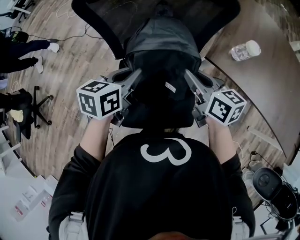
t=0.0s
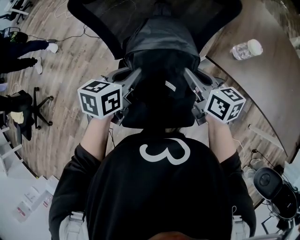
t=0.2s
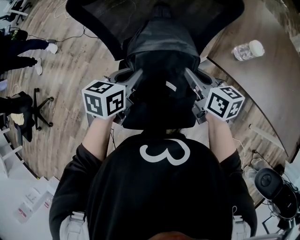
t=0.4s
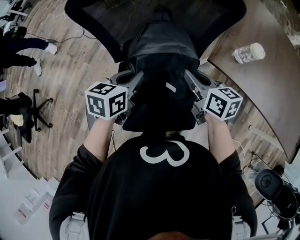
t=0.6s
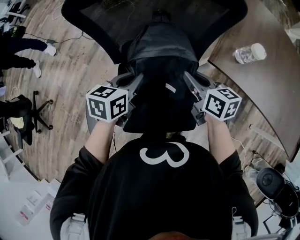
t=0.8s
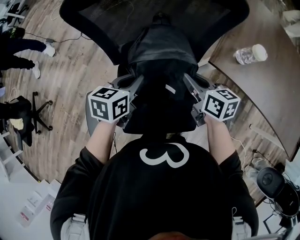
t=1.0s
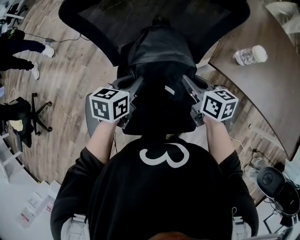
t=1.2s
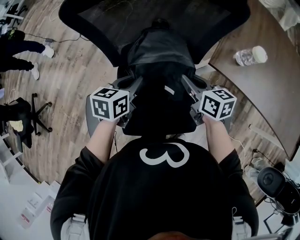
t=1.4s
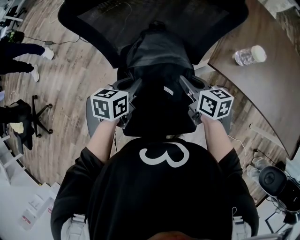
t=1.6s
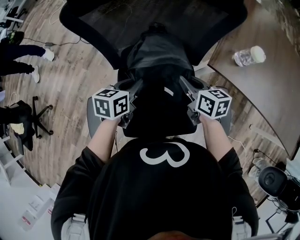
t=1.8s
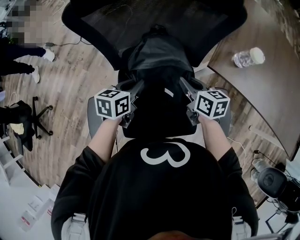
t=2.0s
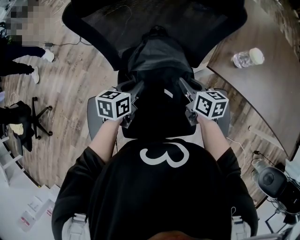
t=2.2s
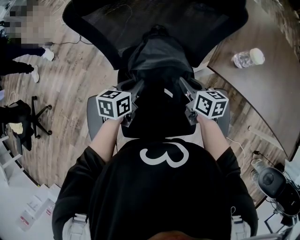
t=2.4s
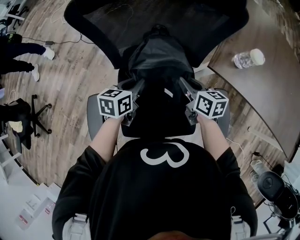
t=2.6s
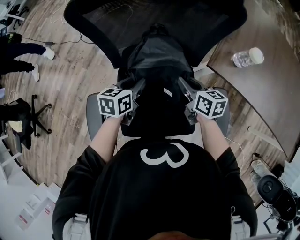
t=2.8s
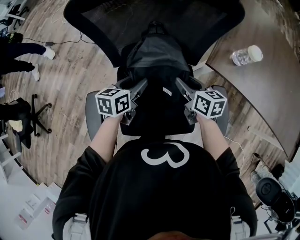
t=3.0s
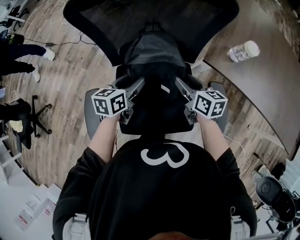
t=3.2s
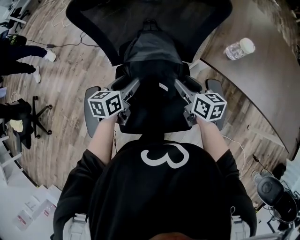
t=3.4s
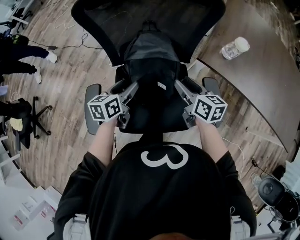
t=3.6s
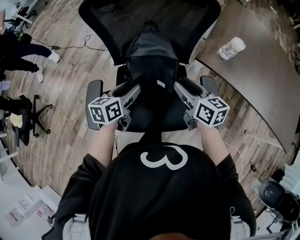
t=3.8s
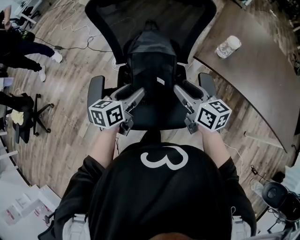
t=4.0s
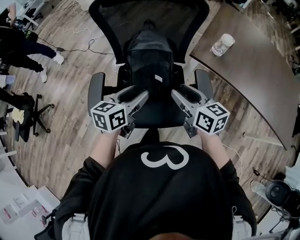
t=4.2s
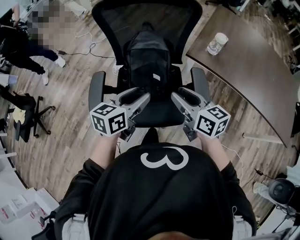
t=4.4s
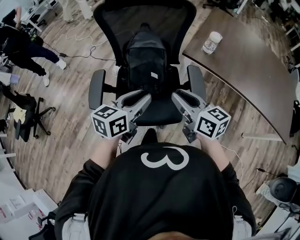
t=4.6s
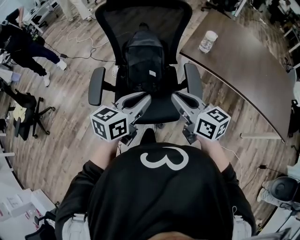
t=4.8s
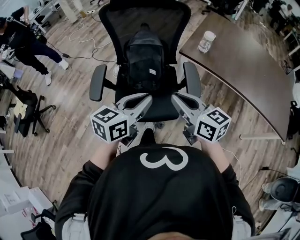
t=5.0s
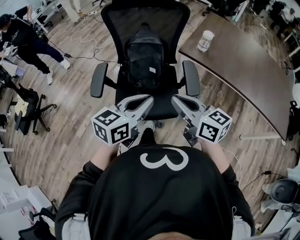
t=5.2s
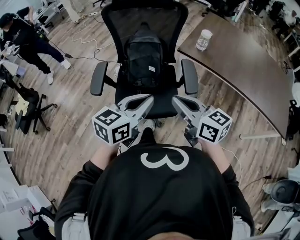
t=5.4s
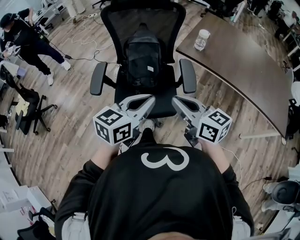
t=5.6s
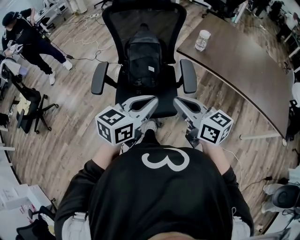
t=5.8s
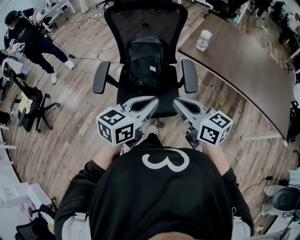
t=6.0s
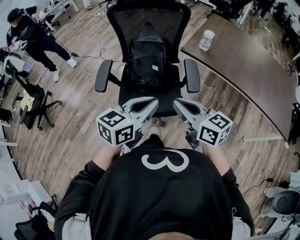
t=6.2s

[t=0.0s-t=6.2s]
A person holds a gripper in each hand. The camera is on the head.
t=0.0s to t=1.6s: Both grippers move downward, some 10 cm.
t=1.6s to t=3.2s: The right gripper opens up. Meanwhile the left gripper opens up.
t=3.2s to t=4.6s: The two grippers go some 30 cm backward and upward. The right gripper changes its angle by some 20 degrees, and closes its fingers, while the left gripper closes up.
t=4.6s to t=6.2s: The left gripper travels backward and to the right by about 15 cm, and closes up; the right gripper travels backward by roughly 15 cm, and closes.

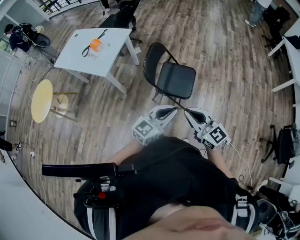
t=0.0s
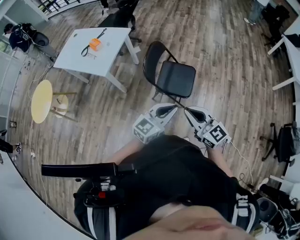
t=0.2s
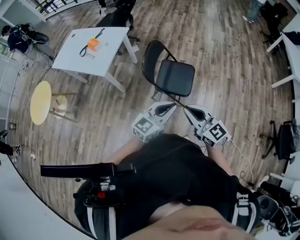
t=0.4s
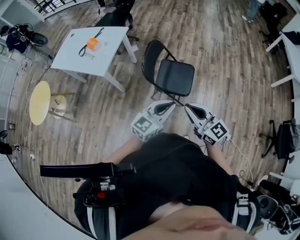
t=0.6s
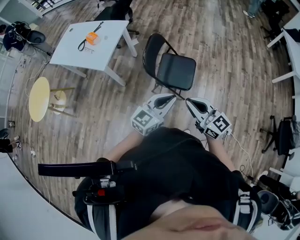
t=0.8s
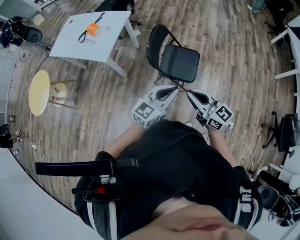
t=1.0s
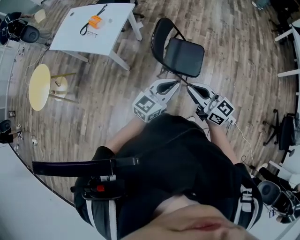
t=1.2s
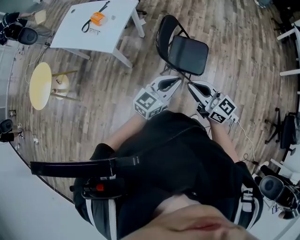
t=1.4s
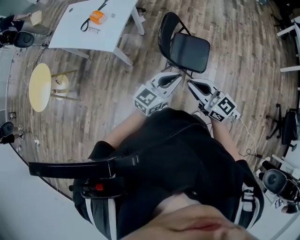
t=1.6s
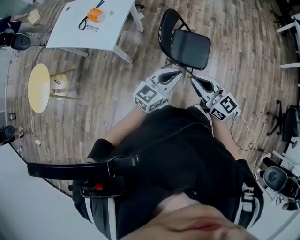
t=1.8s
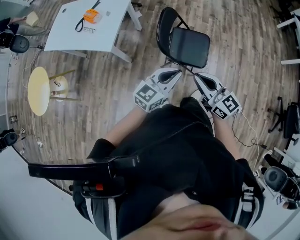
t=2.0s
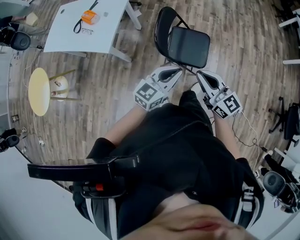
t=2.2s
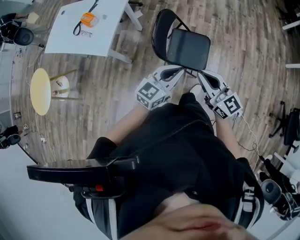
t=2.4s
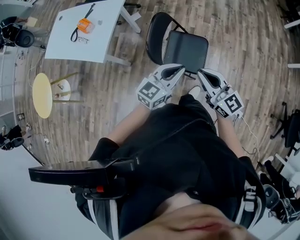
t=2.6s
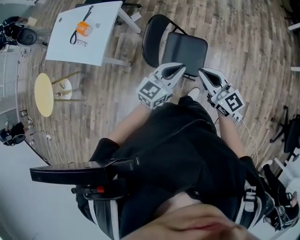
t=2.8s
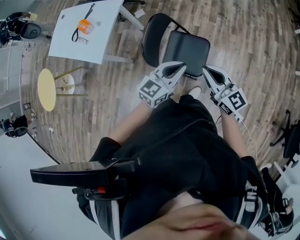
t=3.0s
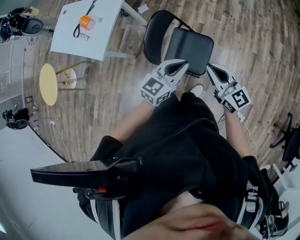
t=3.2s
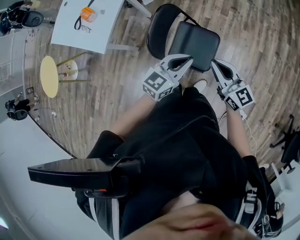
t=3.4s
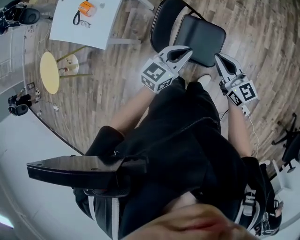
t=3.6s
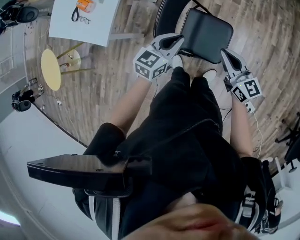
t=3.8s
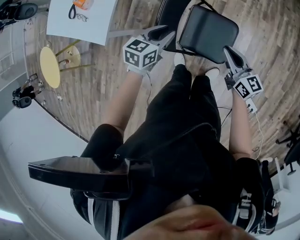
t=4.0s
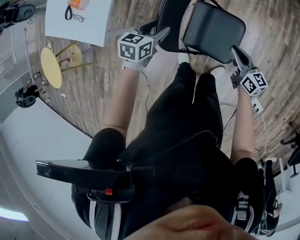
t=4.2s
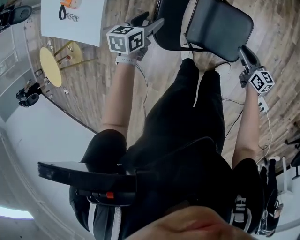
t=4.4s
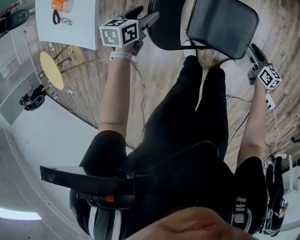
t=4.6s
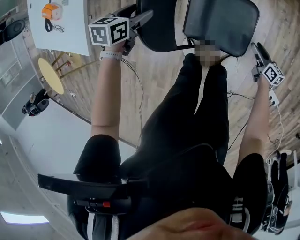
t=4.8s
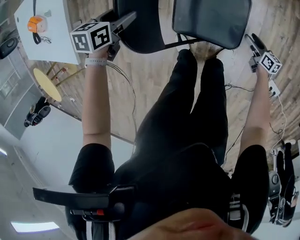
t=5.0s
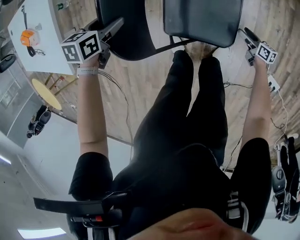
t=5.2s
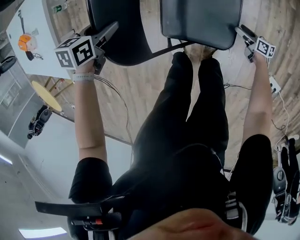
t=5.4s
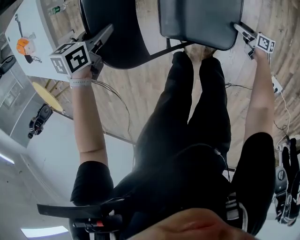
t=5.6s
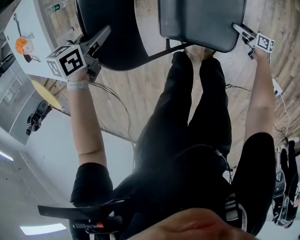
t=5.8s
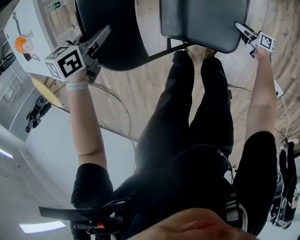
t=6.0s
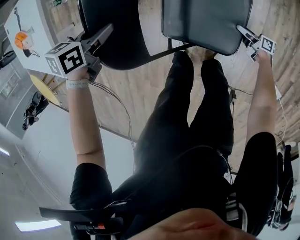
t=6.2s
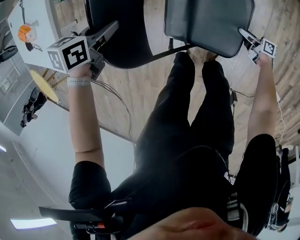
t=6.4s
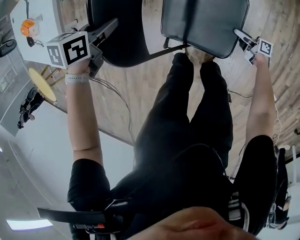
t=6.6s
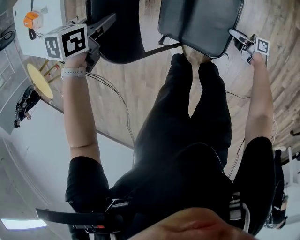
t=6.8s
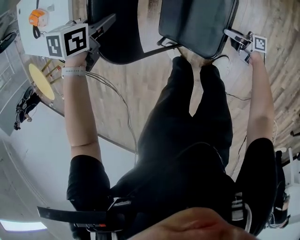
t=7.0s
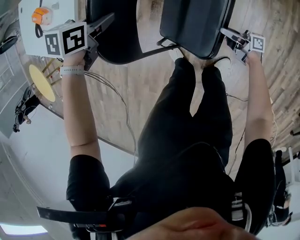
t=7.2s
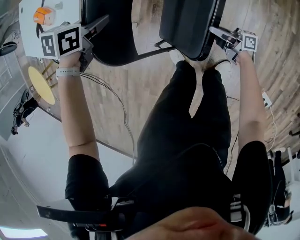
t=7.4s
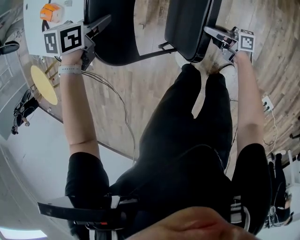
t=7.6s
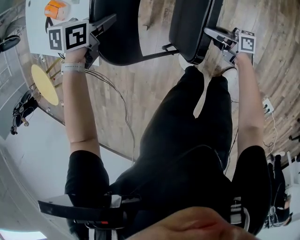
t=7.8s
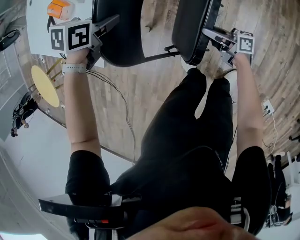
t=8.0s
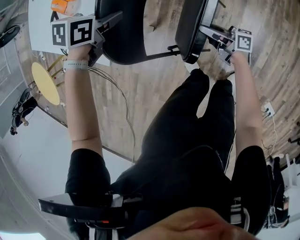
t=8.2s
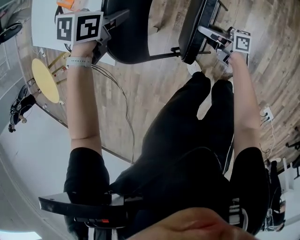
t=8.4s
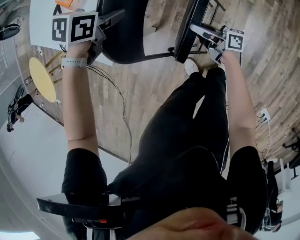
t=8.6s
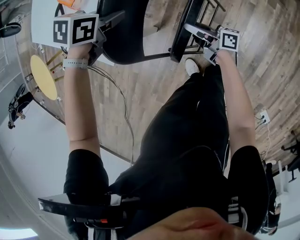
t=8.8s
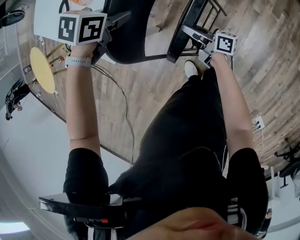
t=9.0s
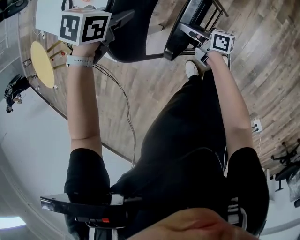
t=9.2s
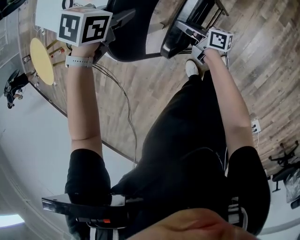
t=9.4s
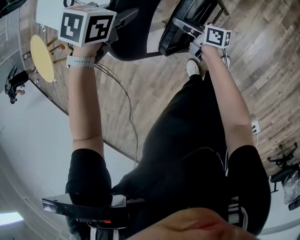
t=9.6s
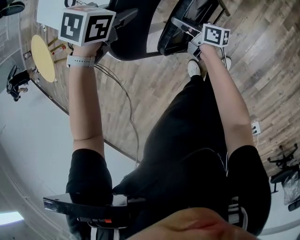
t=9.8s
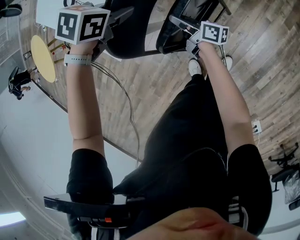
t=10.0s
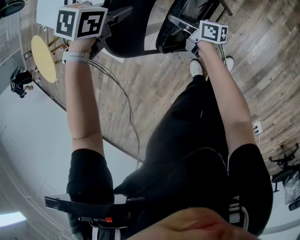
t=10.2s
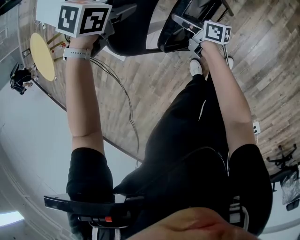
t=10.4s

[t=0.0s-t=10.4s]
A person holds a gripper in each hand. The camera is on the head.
t=0.0s to t=1.4s: Both grippers move to the left and forward, approximately 10 cm.
t=1.4s to t=3.0s: The grippers both shift forward and to the right by some 25 cm.
t=3.0s to t=4.4s: The right gripper goes approximately 40 cm downward, and turns by roughly 40 degrees; the left gripper goes roughly 40 cm downward, to the left and forward, tilts its fingers approximately 40 degrees downward, and opens up.
t=4.4s to t=6.0s: The left gripper shifts approximately 10 cm downward, and closes up; the right gripper travels downward by about 30 cm, rotates some 30 degrees, and opens its fingers.
t=6.0s to t=7.4s: The right gripper moves upward, approximately 30 cm, rotates about 30 degrees, and closes up. Meanwhile the left gripper is displaced upward by some 10 cm.
t=7.4s to t=9.0s: The left gripper ends up some 15 cm from where it was. The right gripper ends up about 30 cm from where it was.
t=9.0s to t=10.4s: The left gripper moves about 5 cm. Meanwhile the right gripper shifts by some 10 cm.

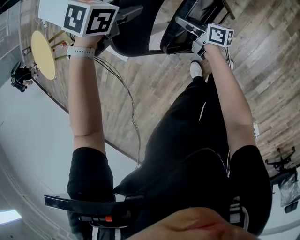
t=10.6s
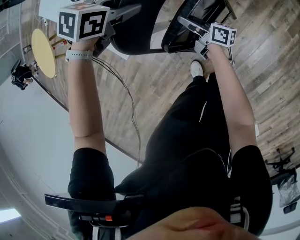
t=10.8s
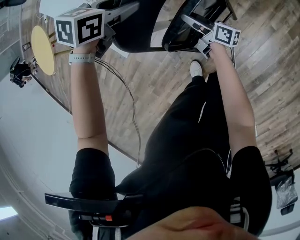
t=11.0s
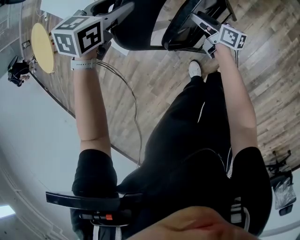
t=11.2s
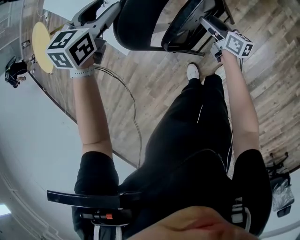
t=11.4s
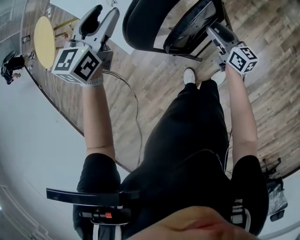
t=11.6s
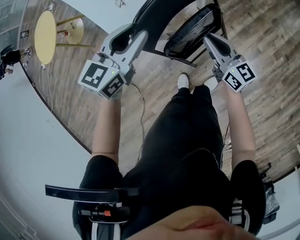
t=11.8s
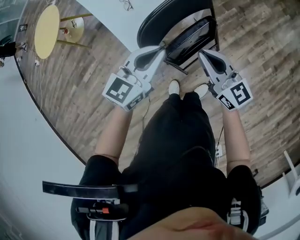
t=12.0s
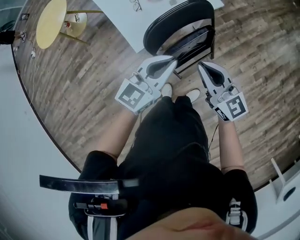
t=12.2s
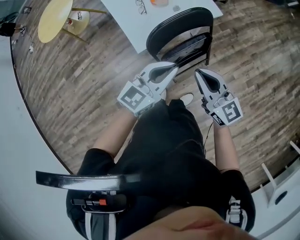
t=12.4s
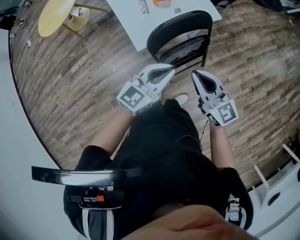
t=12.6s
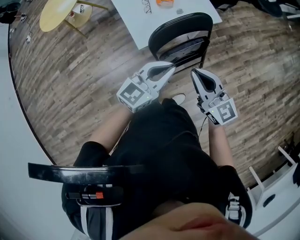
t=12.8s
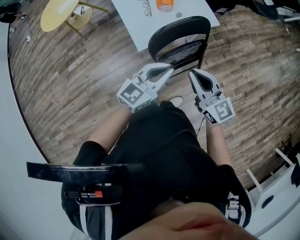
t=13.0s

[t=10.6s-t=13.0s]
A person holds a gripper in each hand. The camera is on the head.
t=10.6s to t=11.8s: Both grippers travel together upward, some 20 cm. The left gripper points its fingers about 40 degrees further upward; the right gripper twists about 50 degrees counterclockwise, seen from behind, and opens and closes again.
t=11.8s to t=13.0s: The left gripper moves backward and upward, some 20 cm, and closes. Meanwhile the right gripper is displaced upward and backward by roughly 25 cm, and swivels about 30 degrees.

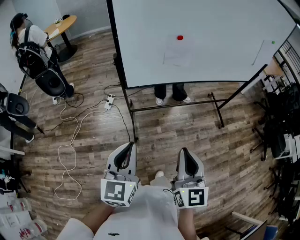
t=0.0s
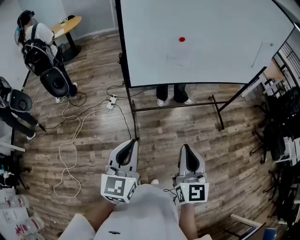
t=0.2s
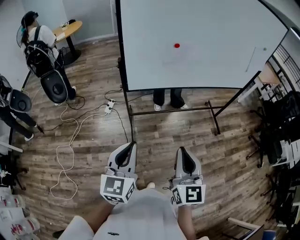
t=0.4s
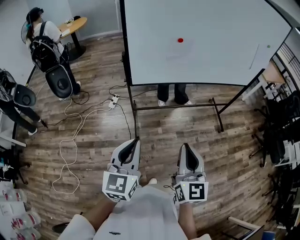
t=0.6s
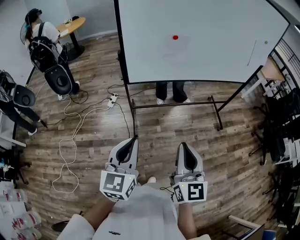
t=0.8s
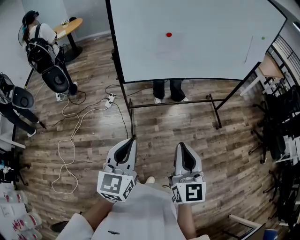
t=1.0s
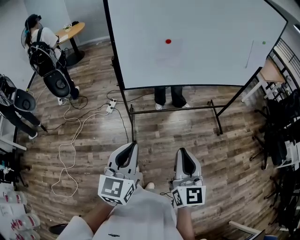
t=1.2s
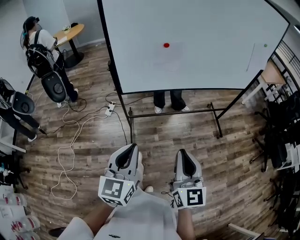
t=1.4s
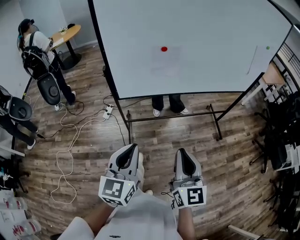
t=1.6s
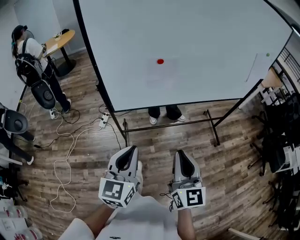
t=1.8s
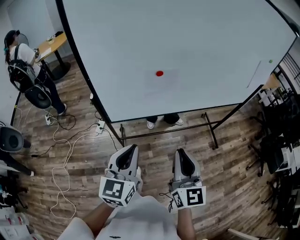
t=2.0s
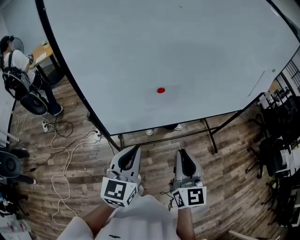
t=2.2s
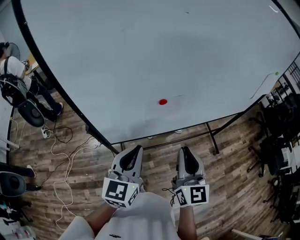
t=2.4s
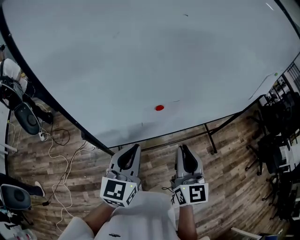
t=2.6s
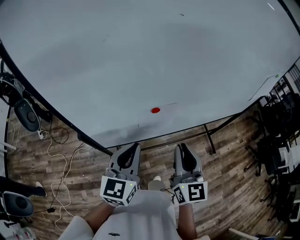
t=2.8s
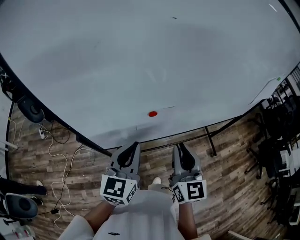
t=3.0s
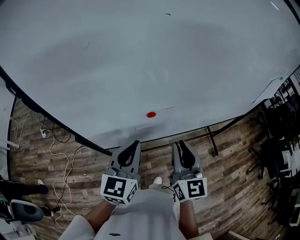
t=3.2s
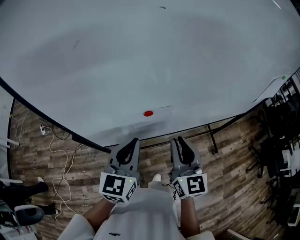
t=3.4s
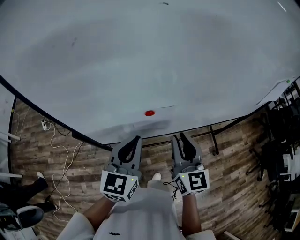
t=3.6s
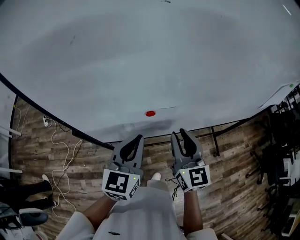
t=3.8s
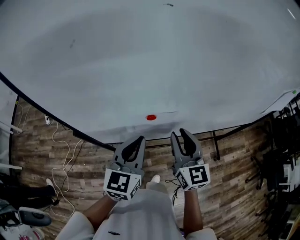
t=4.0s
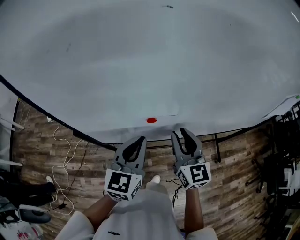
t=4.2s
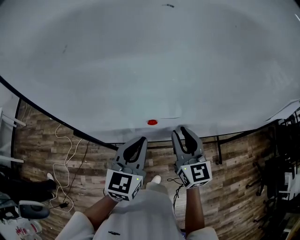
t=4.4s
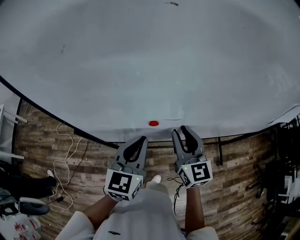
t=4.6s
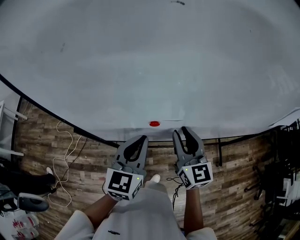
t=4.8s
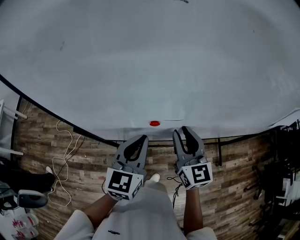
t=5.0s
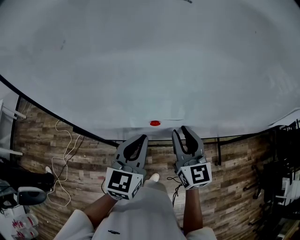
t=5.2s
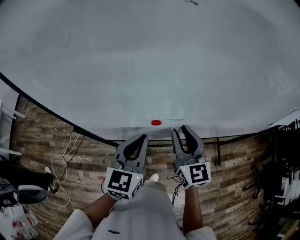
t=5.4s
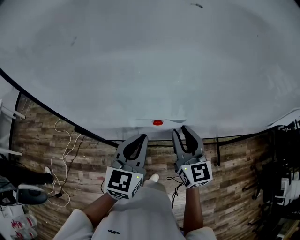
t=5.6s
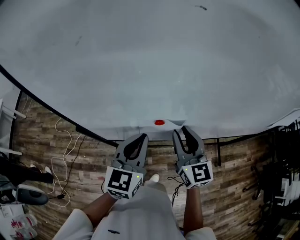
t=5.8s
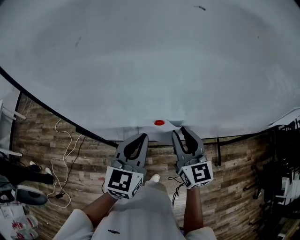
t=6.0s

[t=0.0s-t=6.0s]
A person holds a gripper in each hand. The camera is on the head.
t=0.0s to t=1.6s: Both grippers move to the right, about 10 cm. The right gripper reaches approximately 5 cm backward, then returns, while the left gripper reaches roughly 10 cm backward, then returns.
t=1.6s to t=3.0s: Both grippers move forward, roughly 35 cm.
t=3.0s to t=4.4s: The left gripper heads forward, covering some 5 cm, while the right gripper goes some 10 cm forward.
t=4.4s to t=6.0s: There are only small adjustments of the grippers.
